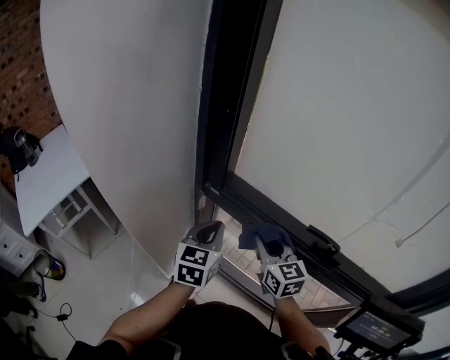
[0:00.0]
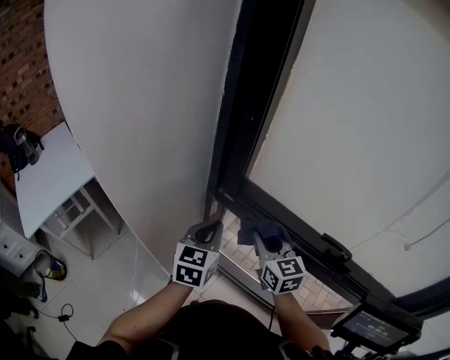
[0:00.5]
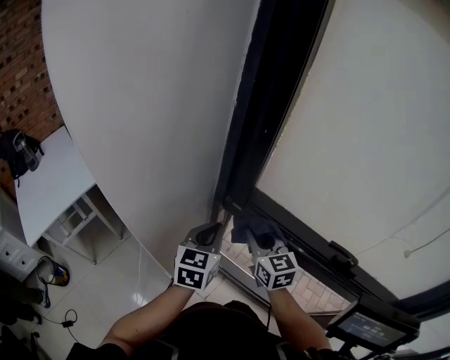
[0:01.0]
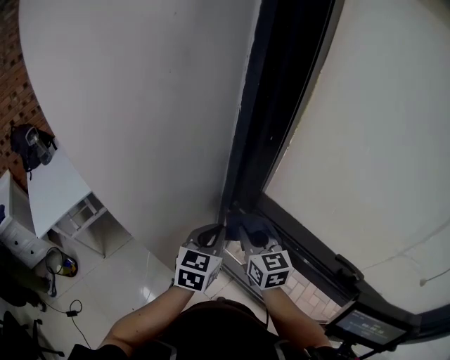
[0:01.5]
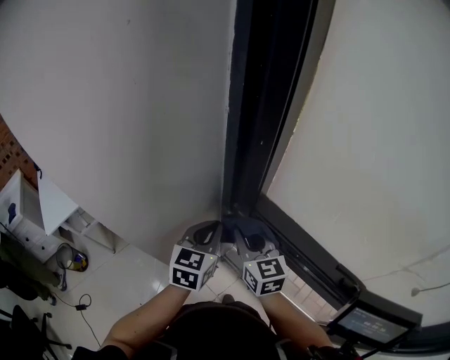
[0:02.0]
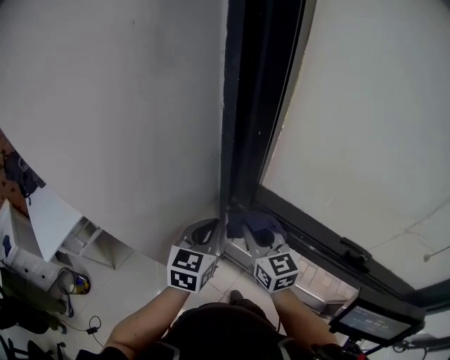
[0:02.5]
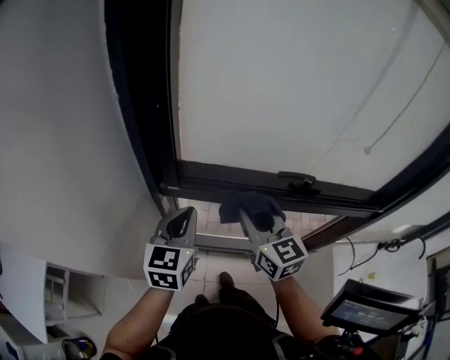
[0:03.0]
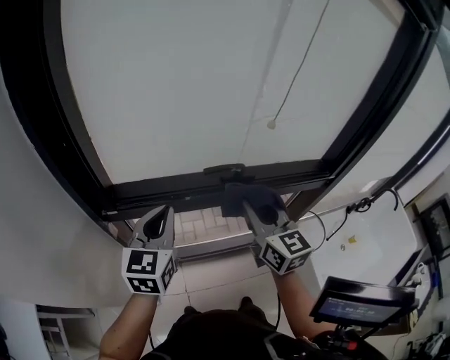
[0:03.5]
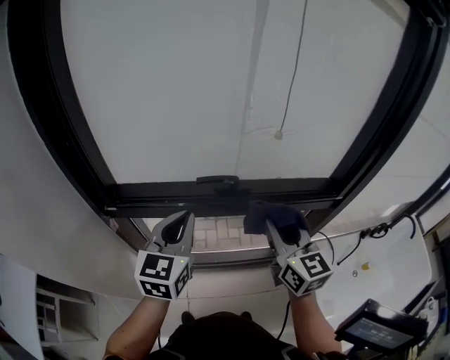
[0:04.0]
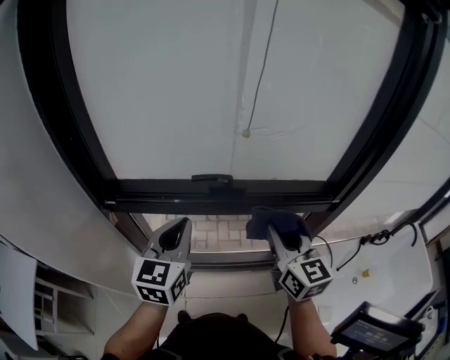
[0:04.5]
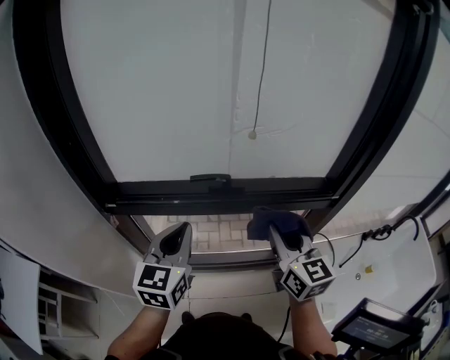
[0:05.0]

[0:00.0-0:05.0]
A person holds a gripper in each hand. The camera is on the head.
0:00.0 to 0:02.5: The two grippers go about 15 cm to the left and forward.
0:02.5 to 0:05.0: The right gripper moves approximately 50 cm, and changes its angle by some 50 degrees. Meanwhile the left gripper shifts by about 30 cm, and swivels approximately 30 degrees.

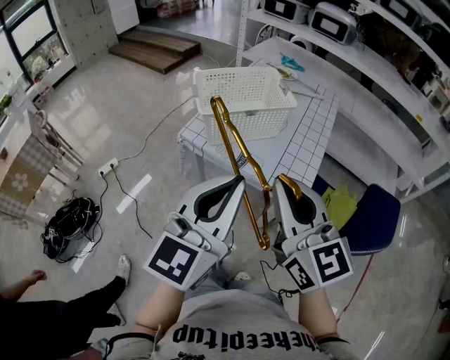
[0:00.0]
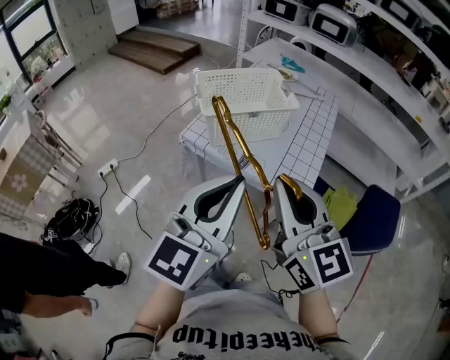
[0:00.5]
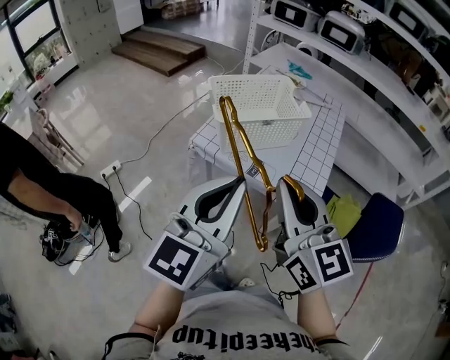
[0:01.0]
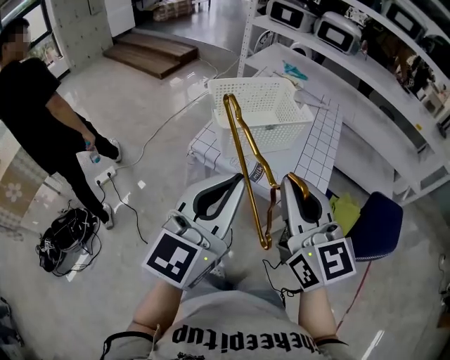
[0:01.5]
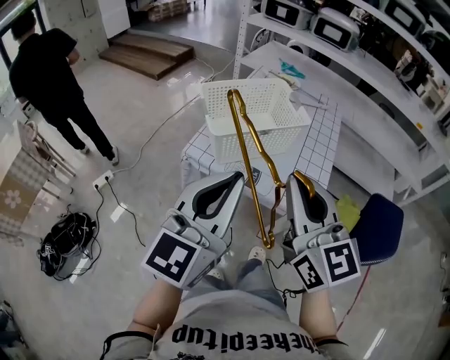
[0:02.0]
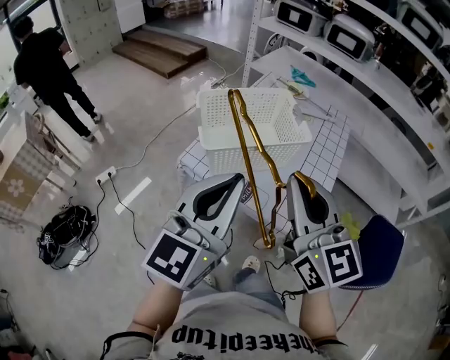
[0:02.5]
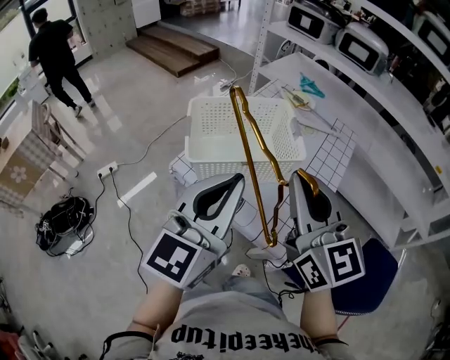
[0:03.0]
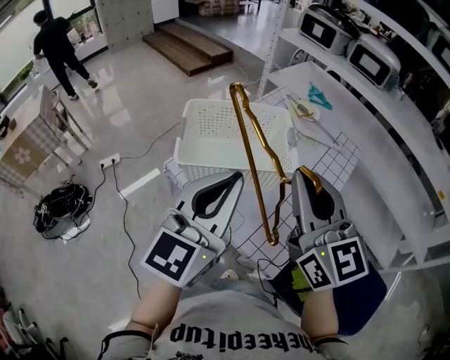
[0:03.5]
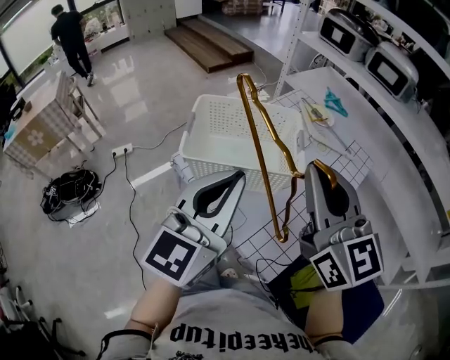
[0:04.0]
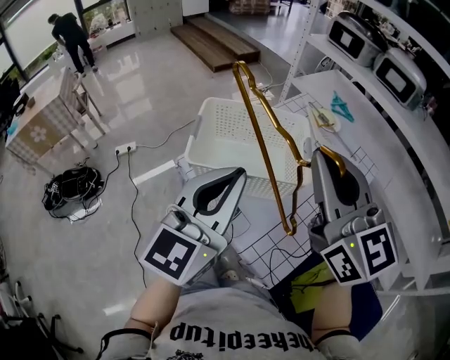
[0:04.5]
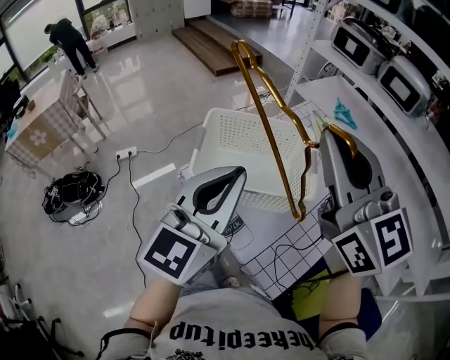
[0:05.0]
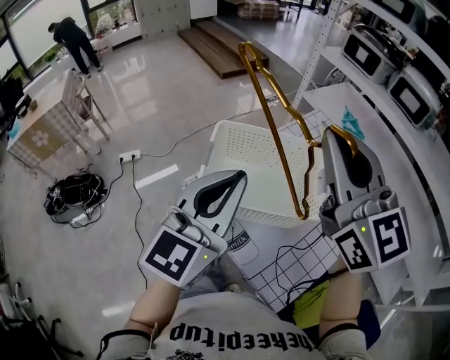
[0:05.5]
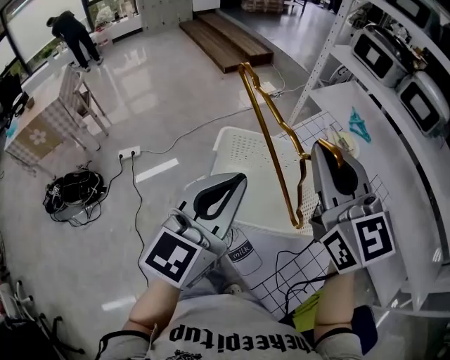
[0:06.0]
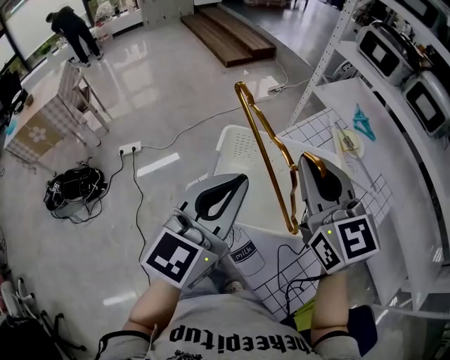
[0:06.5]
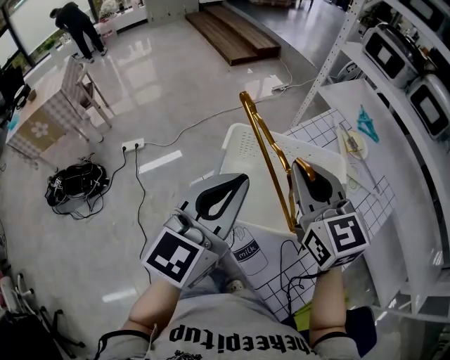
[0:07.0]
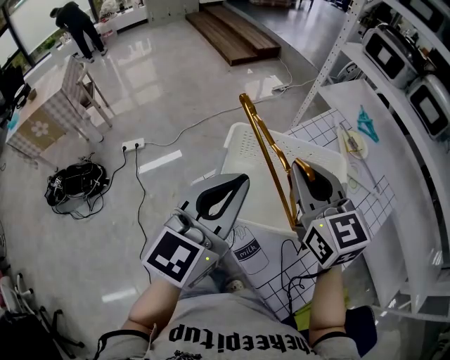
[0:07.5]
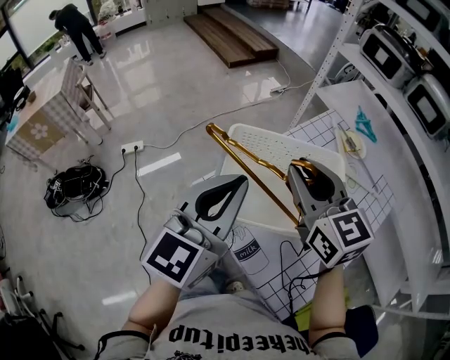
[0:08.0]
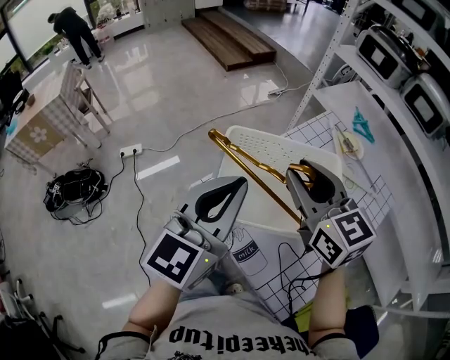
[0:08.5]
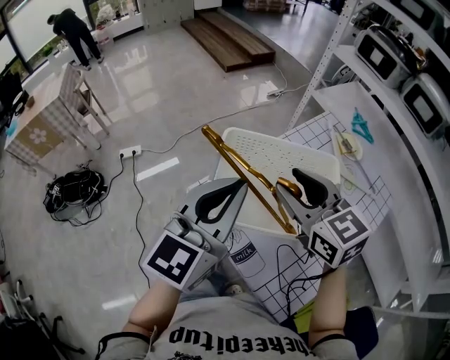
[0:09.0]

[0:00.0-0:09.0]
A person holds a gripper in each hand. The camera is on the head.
0:00.0 to 0:02.0: The left gripper travels to the left and forward by some 10 cm; the right gripper shifts about 5 cm forward.
0:02.0 to 0:04.5: The right gripper changes place by about 25 cm, and rotates roughly 30 degrees, while the left gripper changes place by approximately 20 cm, and turns by some 20 degrees.
0:04.5 to 0:07.0: The left gripper is displaced forward and to the left by approximately 15 cm. The right gripper heads forward, downward and to the left, covering about 25 cm.
0:07.0 to 0:09.0: The right gripper opens.

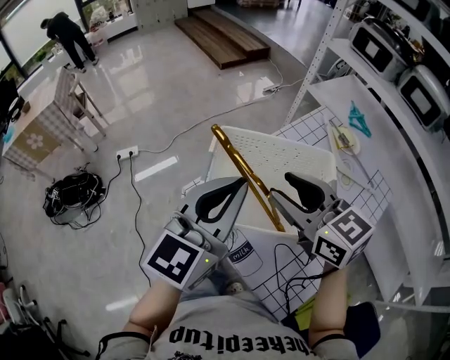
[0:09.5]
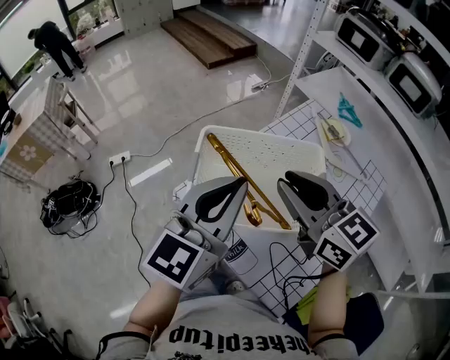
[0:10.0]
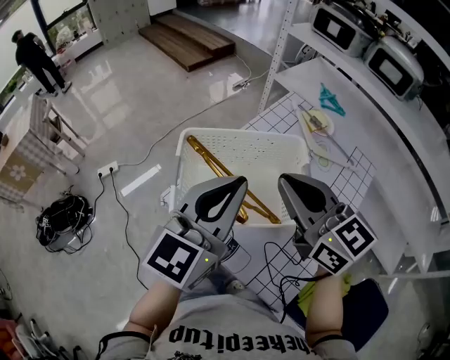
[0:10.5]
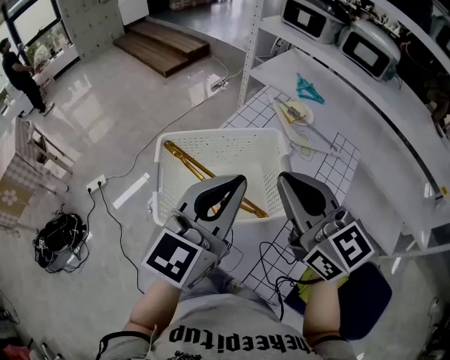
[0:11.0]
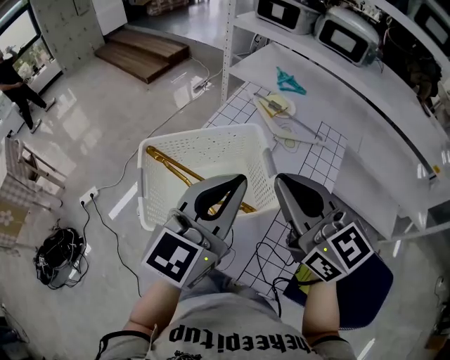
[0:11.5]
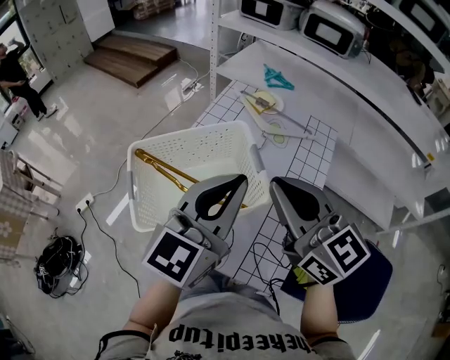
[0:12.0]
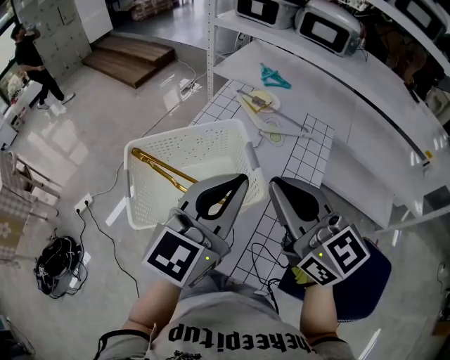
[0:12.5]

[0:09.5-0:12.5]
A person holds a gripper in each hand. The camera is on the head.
0:09.5 to 0:11.0: The left gripper moves to the right, roughly 10 cm; the right gripper is displaced to the right and upward by approximately 10 cm, changes its angle by about 30 degrees, and closes its fingers.
0:11.0 to 0:12.5: The two grippers go some 10 cm to the right.

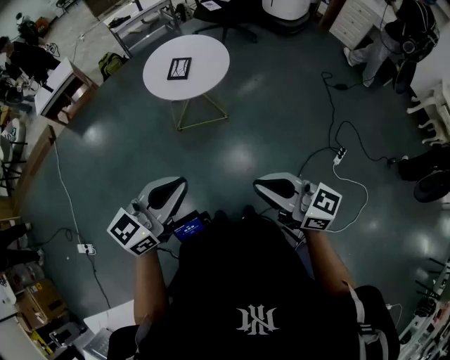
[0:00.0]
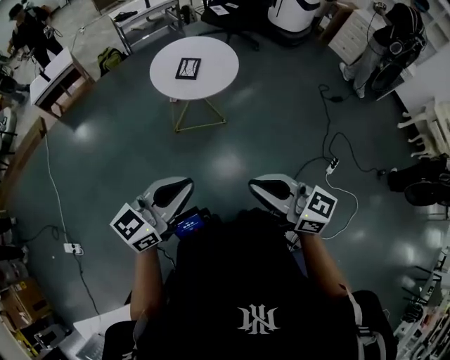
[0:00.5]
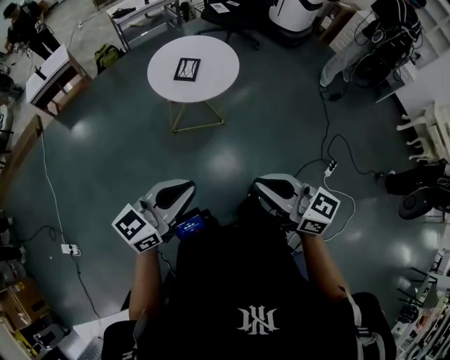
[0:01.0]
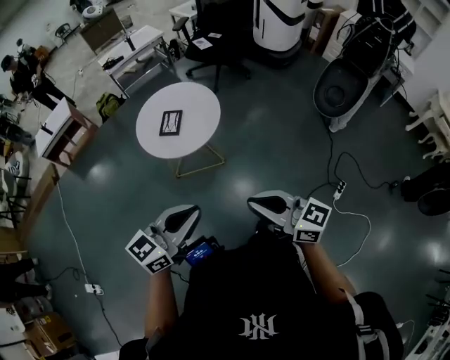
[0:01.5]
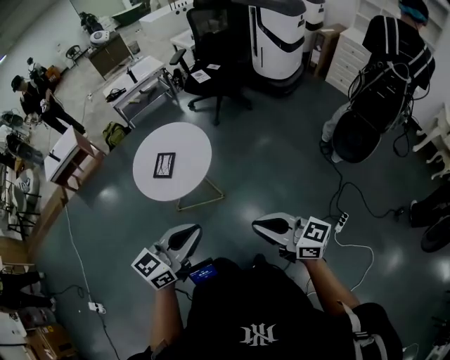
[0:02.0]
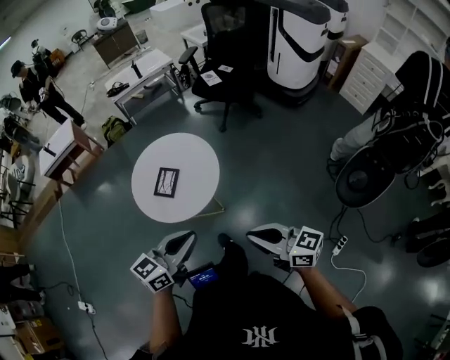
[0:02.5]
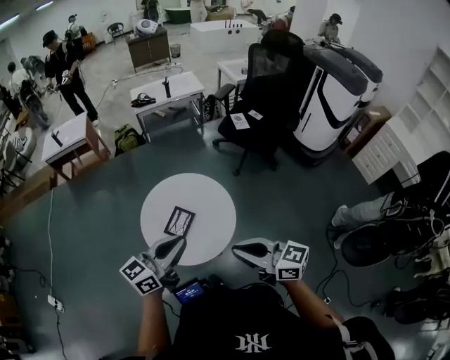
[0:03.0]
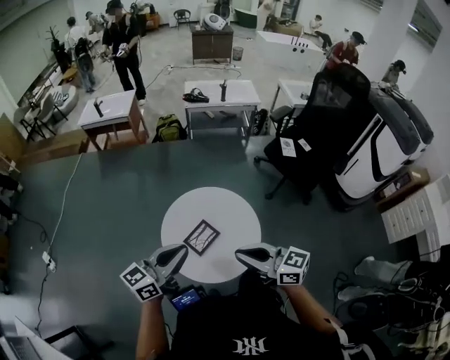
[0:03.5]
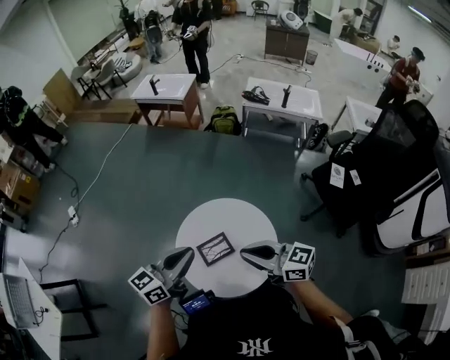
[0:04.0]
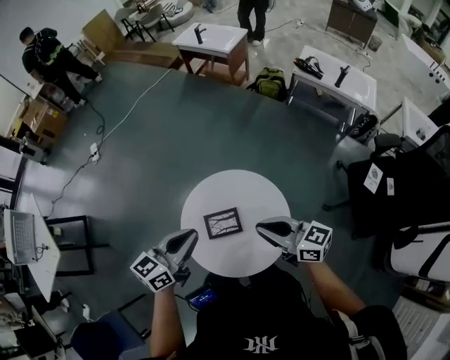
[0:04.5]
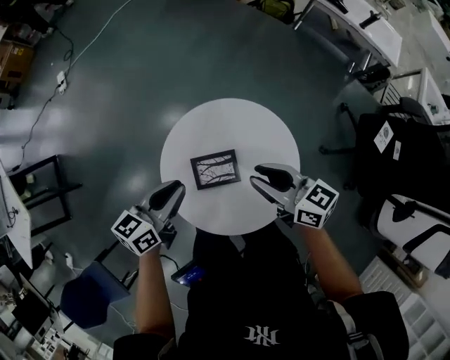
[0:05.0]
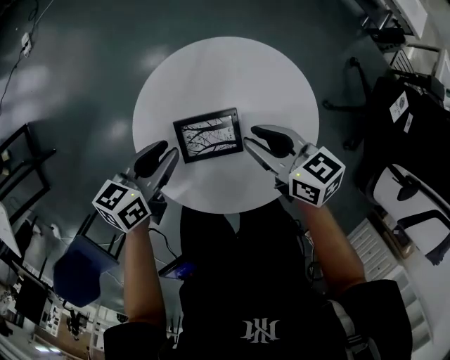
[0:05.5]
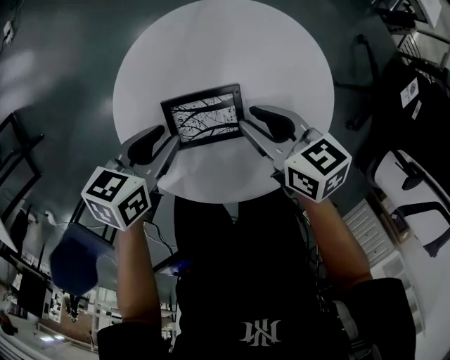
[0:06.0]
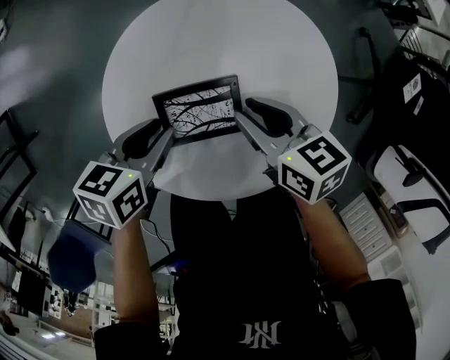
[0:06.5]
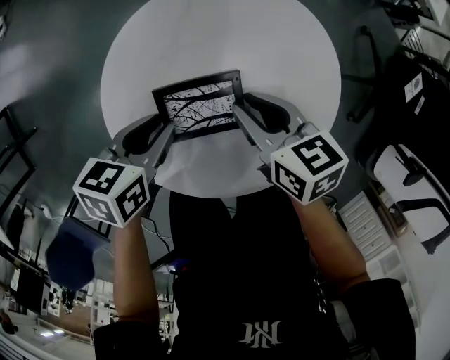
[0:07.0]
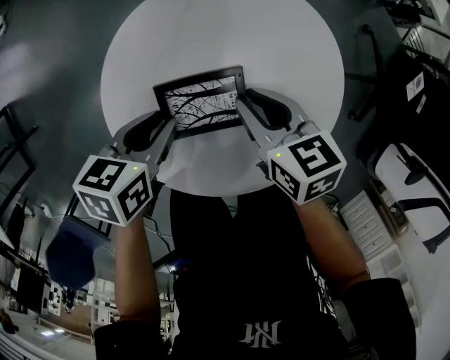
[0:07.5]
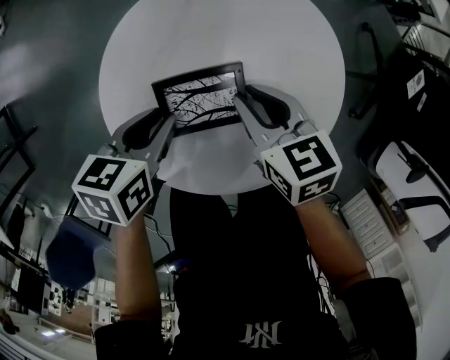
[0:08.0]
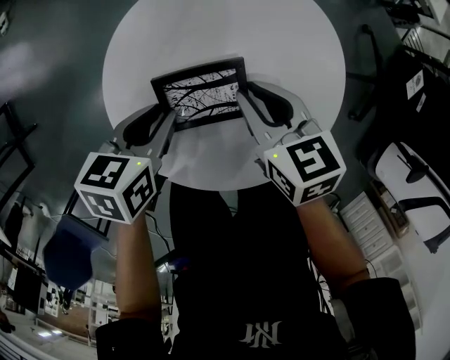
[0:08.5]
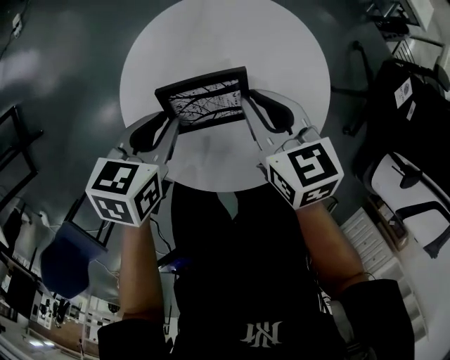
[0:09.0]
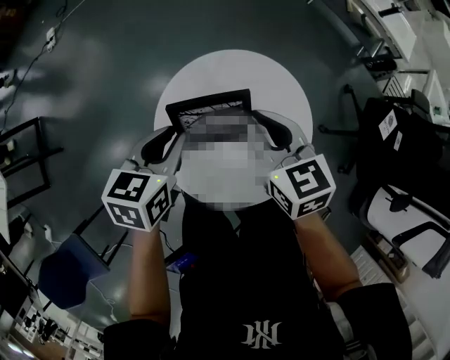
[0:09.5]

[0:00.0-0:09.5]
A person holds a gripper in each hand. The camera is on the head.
0:00.0 to 0:02.0: Both grippers travel together forward and to the right, some 30 cm.
0:02.0 to 0:04.0: The pair of grippers is taken roughly 50 cm. The left gripper swivels approximately 60 degrees. The right gripper rotates approximately 60 degrees.
0:04.0 to 0:05.5: The grippers both shift downward by approximately 35 cm. The left gripper points its fingers approximately 30 degrees further downward, and opens. The right gripper rotates some 30 degrees, and opens up.
0:05.5 to 0:07.5: The grippers both shift downward by approximately 5 cm.
0:07.5 to 0:09.5: The two grippers go approximately 20 cm upward. The right gripper rotates some 20 degrees, while the left gripper swivels roughly 20 degrees.
